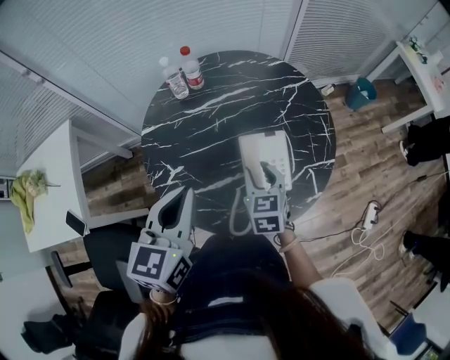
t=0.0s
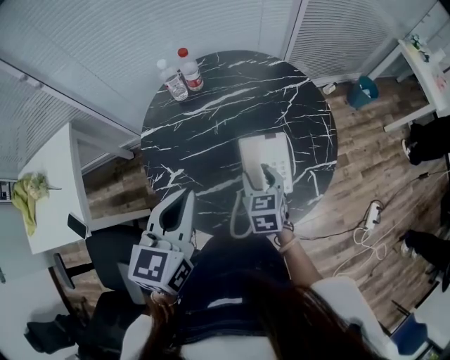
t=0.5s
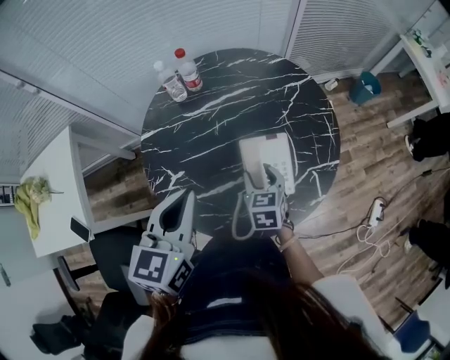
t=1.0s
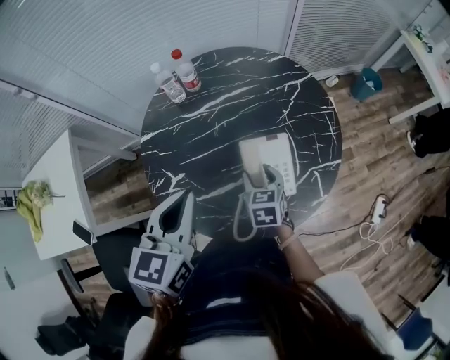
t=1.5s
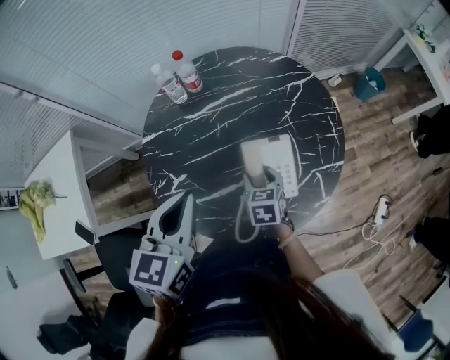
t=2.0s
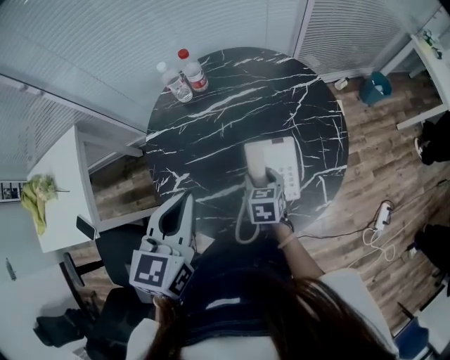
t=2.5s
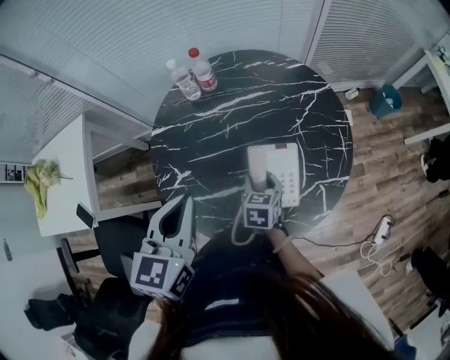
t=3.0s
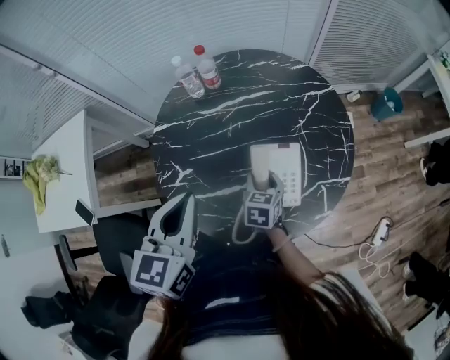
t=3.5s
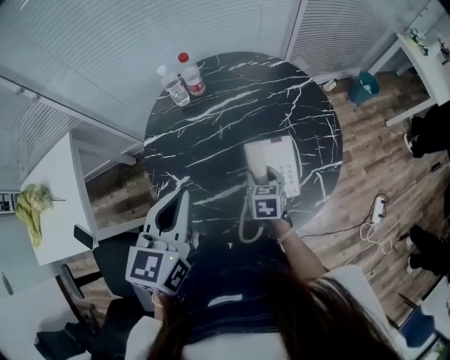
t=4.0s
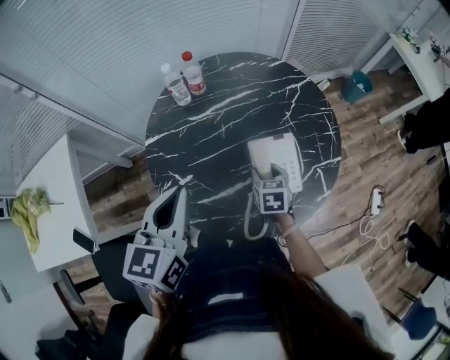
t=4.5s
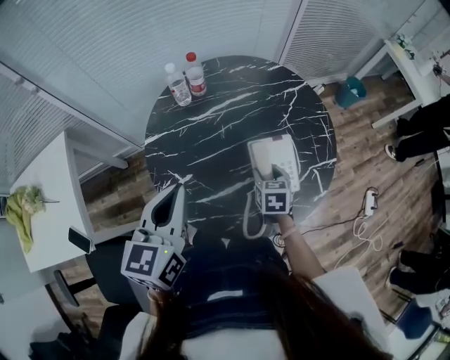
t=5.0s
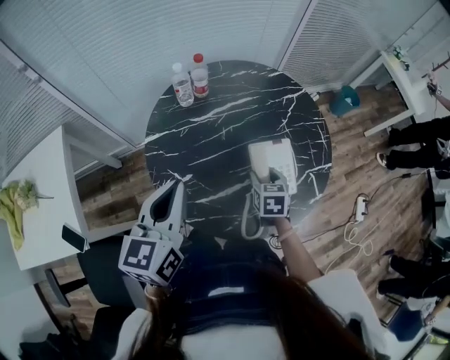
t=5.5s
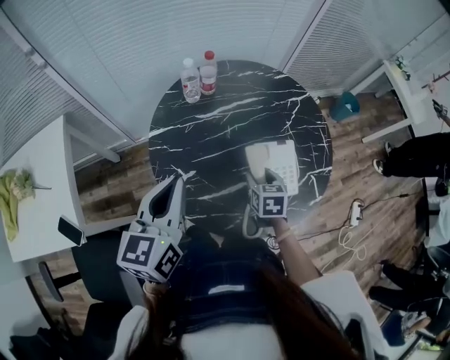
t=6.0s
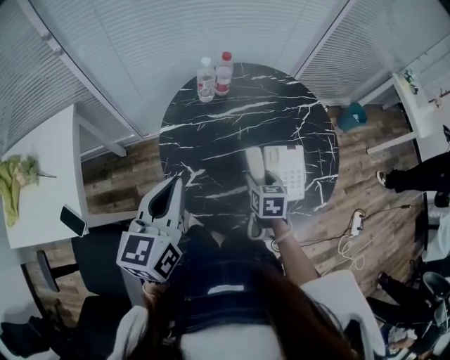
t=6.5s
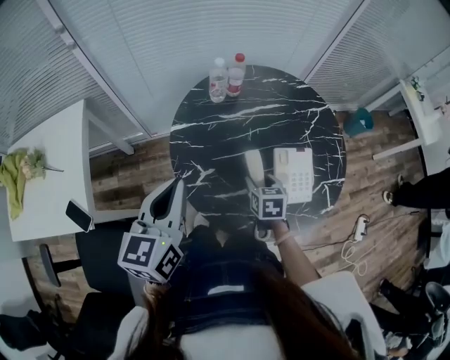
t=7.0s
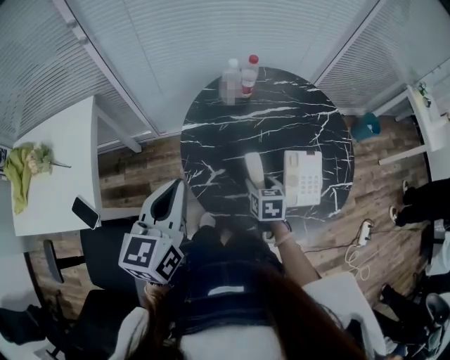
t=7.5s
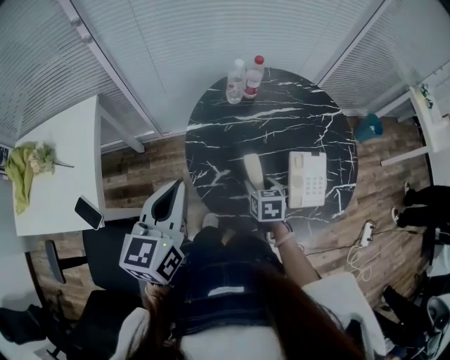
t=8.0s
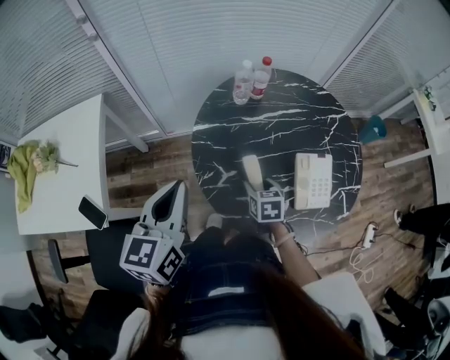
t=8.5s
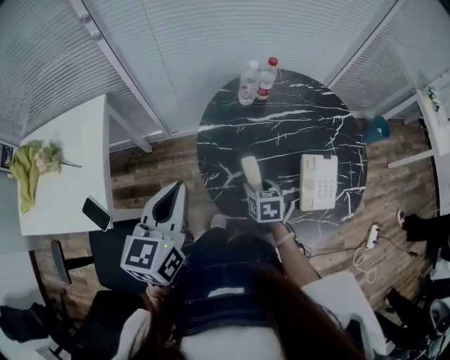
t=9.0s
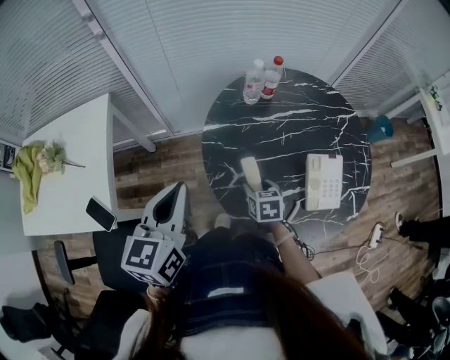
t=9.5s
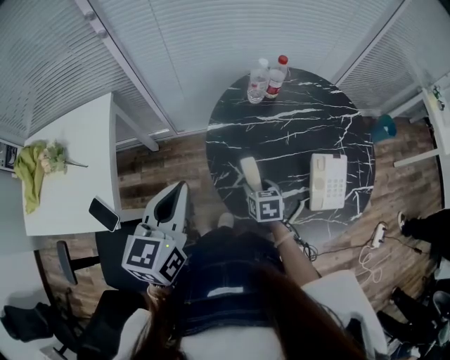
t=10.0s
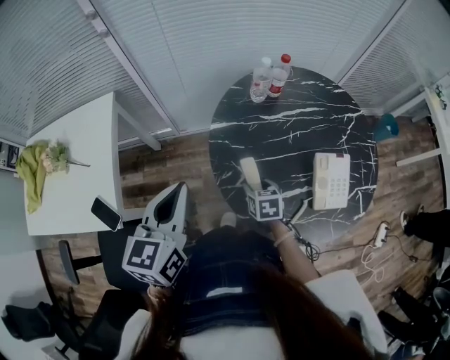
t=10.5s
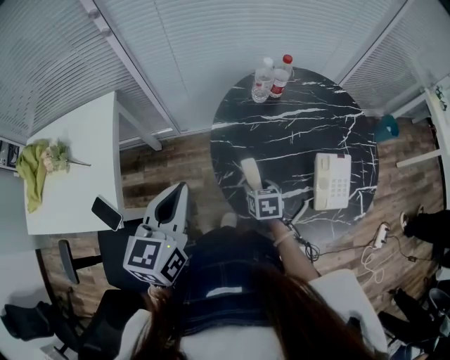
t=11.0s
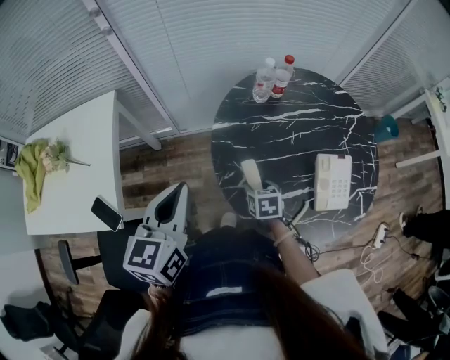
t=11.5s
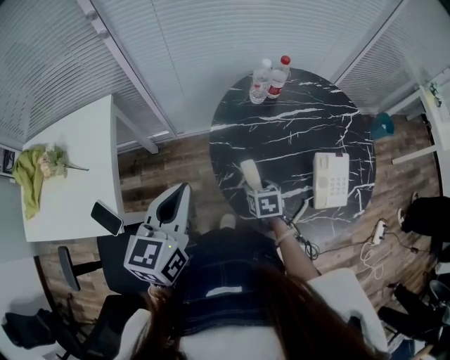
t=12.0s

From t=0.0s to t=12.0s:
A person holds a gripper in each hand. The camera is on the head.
From t=0.0s to t=2.0s: The right gripper is displaced downward by roughly 10 cm.
From t=2.0s to t=4.0s: The grippers make only small movements.
From t=4.0s to t=6.0s: The left gripper is displaced to the left by some 10 cm, while the right gripper ends up approximately 5 cm from where it was.
From t=6.0s to t=8.0s: Both grippers travel together to the left, approximately 10 cm.
From t=8.0s to t=10.0s: Both grippers move to the left, approximately 5 cm.
From t=10.0s to t=12.0s: The grippers stay close to where they were, moving slightly.

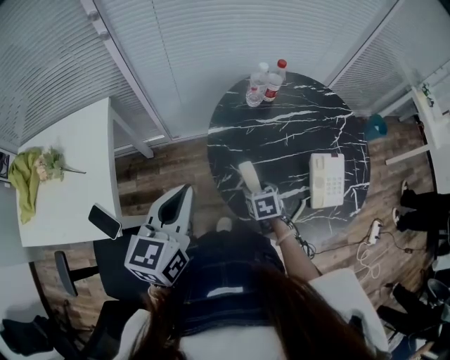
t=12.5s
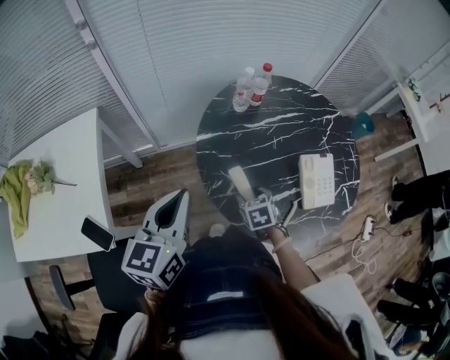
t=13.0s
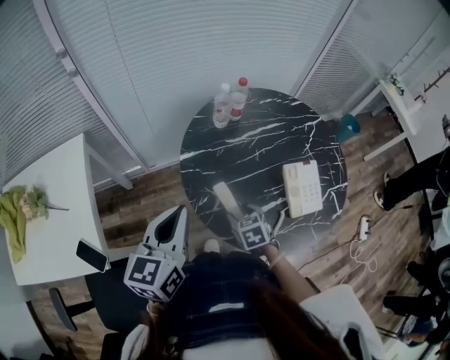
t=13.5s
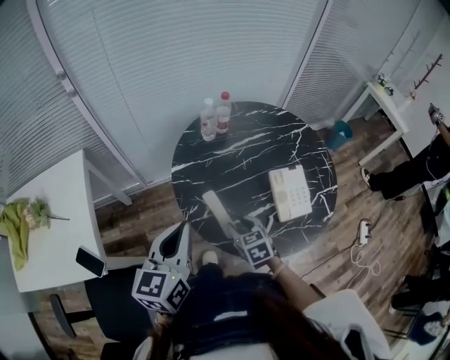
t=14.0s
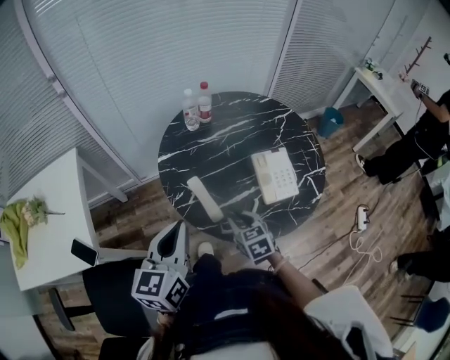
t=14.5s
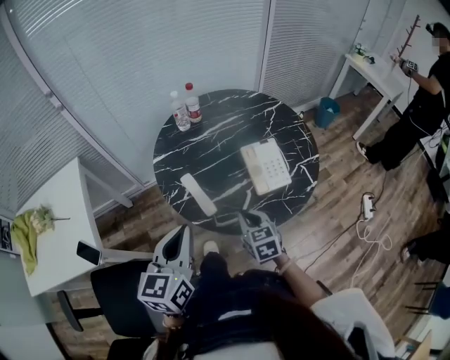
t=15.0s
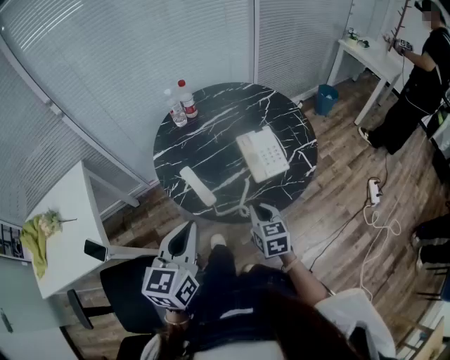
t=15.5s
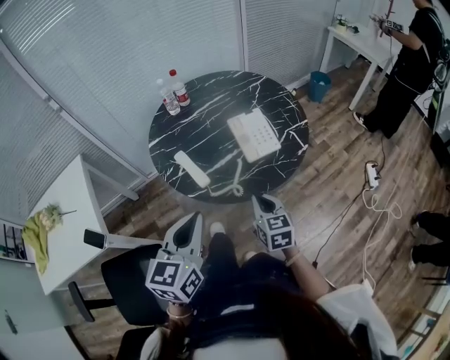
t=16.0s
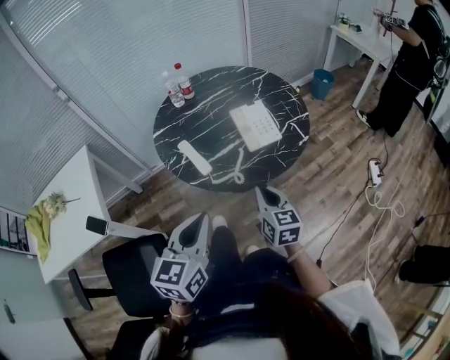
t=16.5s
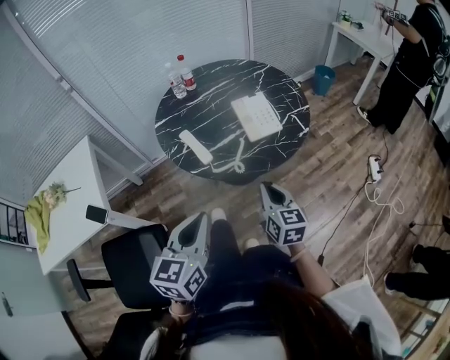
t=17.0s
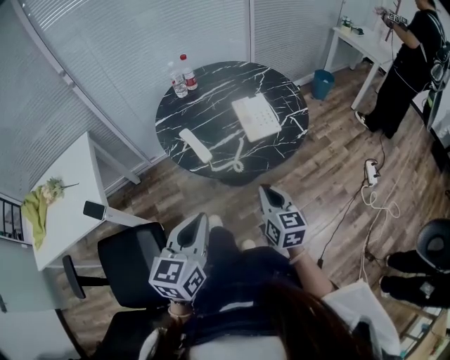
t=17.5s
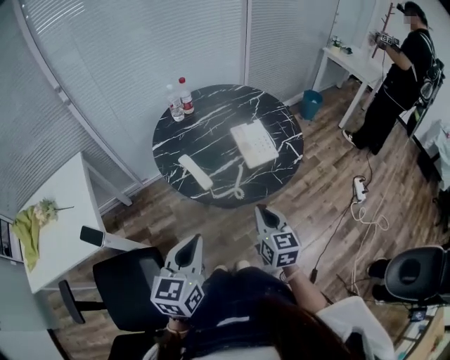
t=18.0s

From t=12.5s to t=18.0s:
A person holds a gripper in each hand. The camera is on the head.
From t=12.5s to t=14.5s: The right gripper goes about 15 cm backward, to the right and upward, and closes, while the left gripper moves to the right and backward, some 15 cm.
From t=14.5s to t=16.0s: The left gripper goes approximately 15 cm backward and to the right. The right gripper heads to the right and backward, covering about 15 cm, changes its angle by roughly 20 degrees, and closes up.
From t=16.0s to t=18.0s: The right gripper is displaced upward and backward by about 10 cm, while the left gripper moves backward, approximately 10 cm.

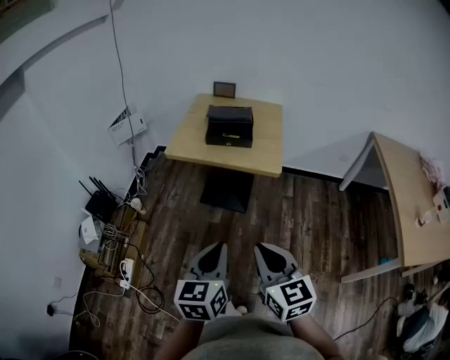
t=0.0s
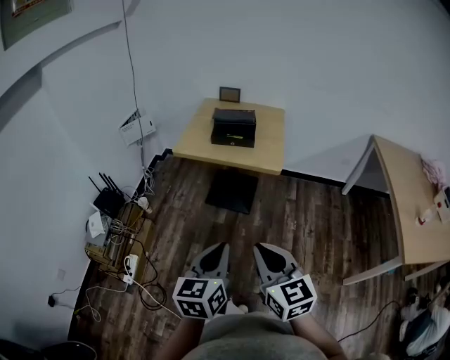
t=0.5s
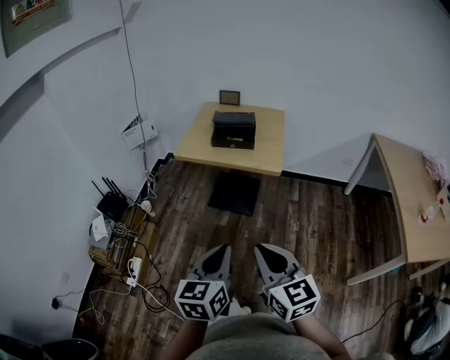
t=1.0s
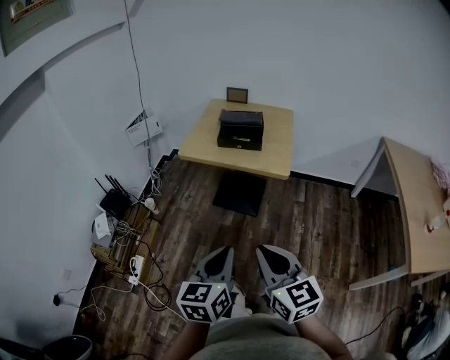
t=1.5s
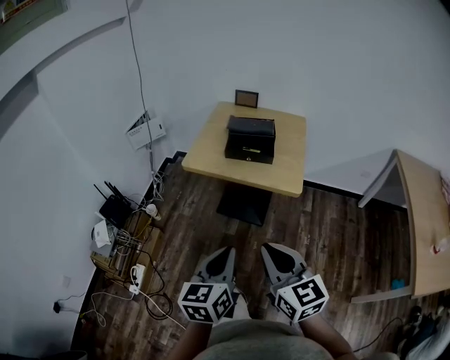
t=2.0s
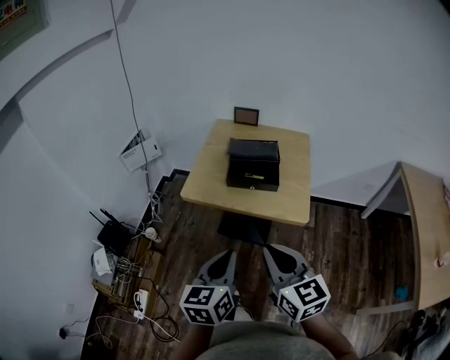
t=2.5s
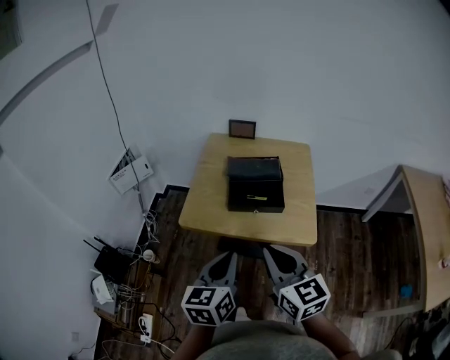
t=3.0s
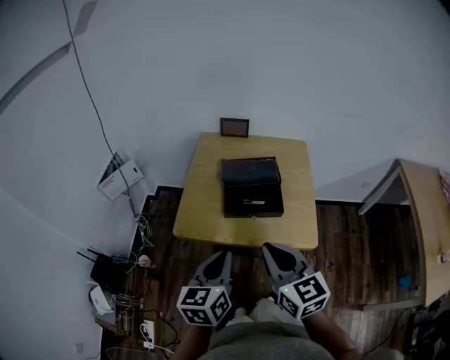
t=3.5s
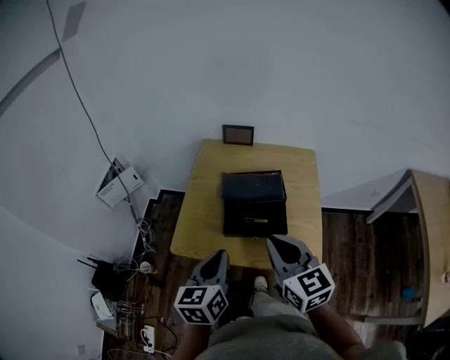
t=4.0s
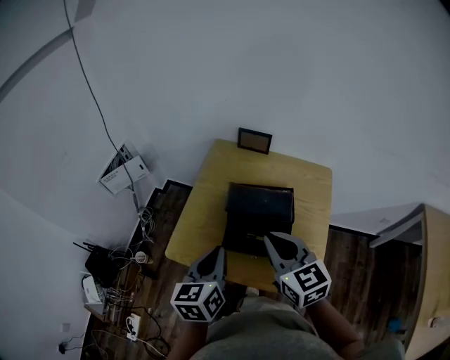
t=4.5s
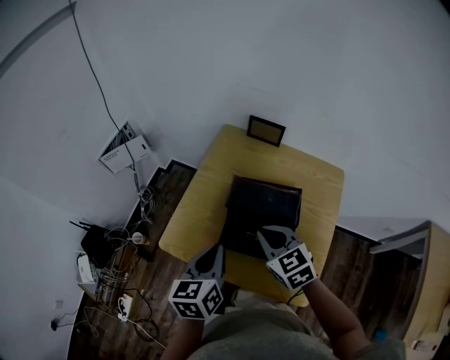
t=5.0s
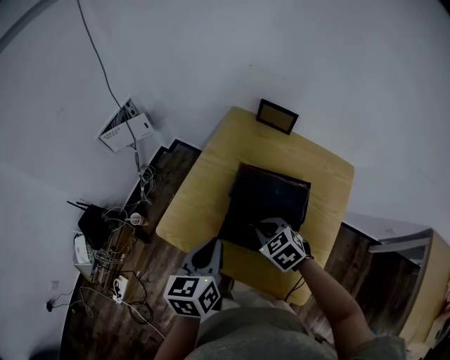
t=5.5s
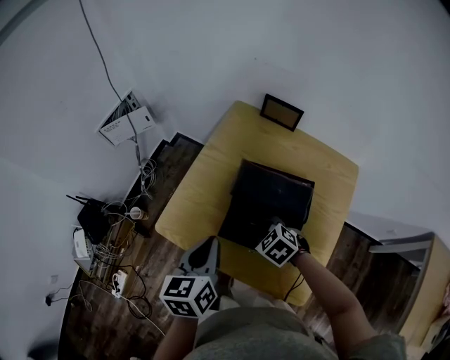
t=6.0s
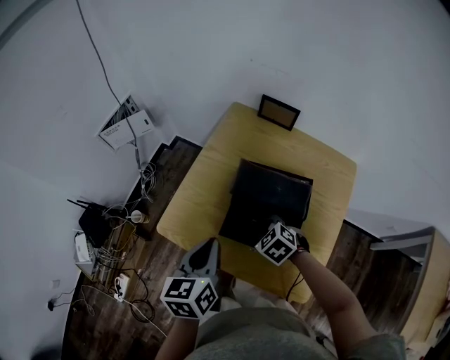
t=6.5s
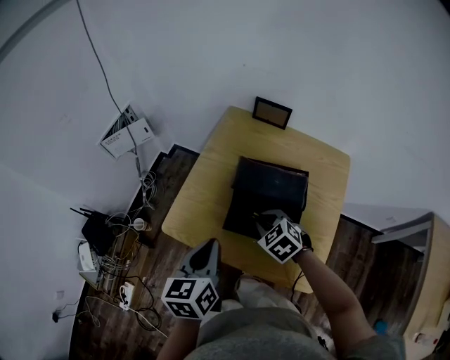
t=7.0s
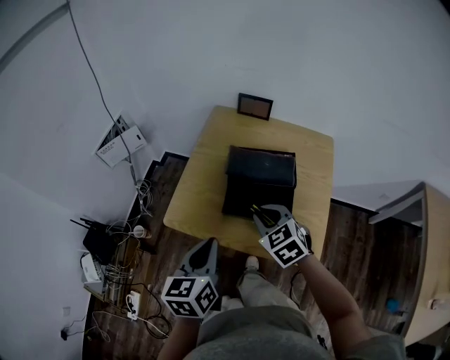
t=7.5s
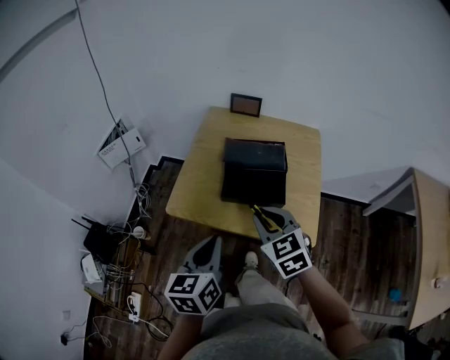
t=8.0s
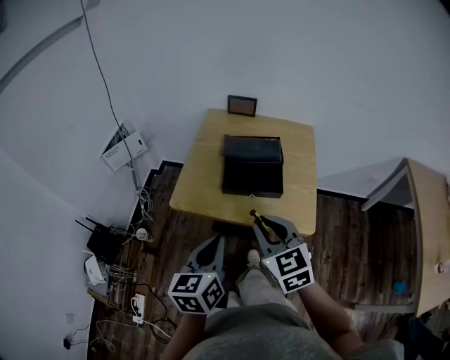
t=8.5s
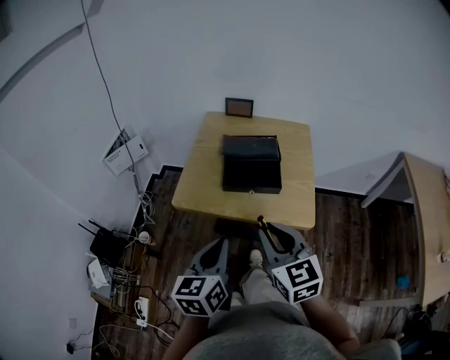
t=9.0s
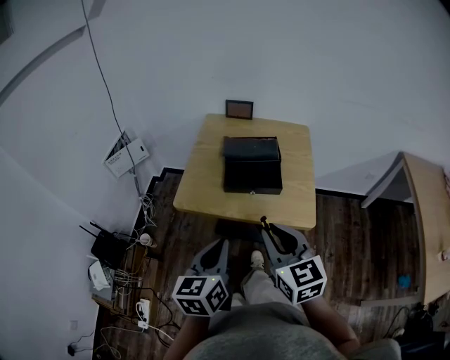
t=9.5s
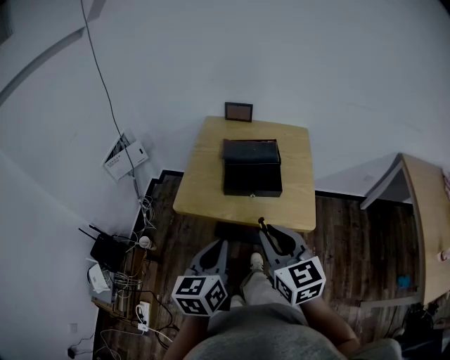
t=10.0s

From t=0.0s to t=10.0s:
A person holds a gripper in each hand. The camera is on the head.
From t=0.0s to t=2.0s: Both grippers travel together forward, about 5 cm.
From t=2.0s to t=4.0s: The pair of grippers is taken forward, approximately 40 cm.
From t=4.0s to t=6.0s: The left gripper ends up approximately 10 cm from where it was, and swivels approximately 20 degrees. The right gripper shifts some 30 cm downward, points its fingers roughly 50 degrees further downward, and opens up.
From t=6.0s to t=8.0s: The right gripper moves upward and backward, approximately 25 cm, and tilts its fingers about 30 degrees upward, while the left gripper is displaced backward by about 15 cm.
From t=8.0s to t=10.0s: The right gripper heads backward and upward, covering about 15 cm, and turns by about 20 degrees; the left gripper moves backward, roughly 10 cm.
